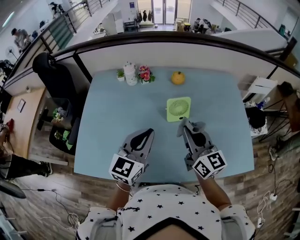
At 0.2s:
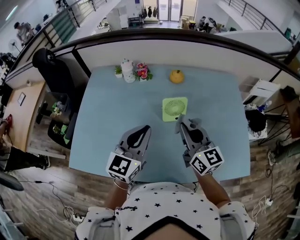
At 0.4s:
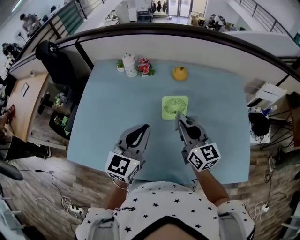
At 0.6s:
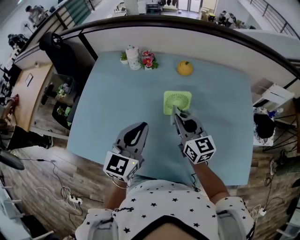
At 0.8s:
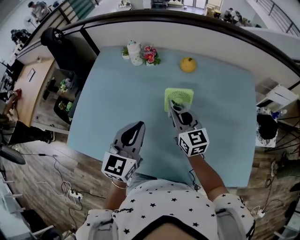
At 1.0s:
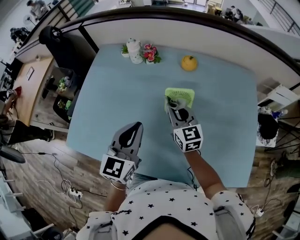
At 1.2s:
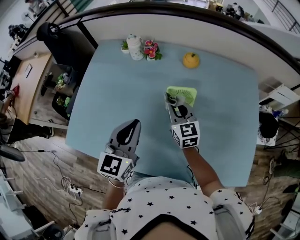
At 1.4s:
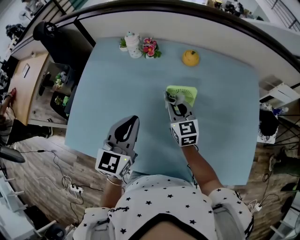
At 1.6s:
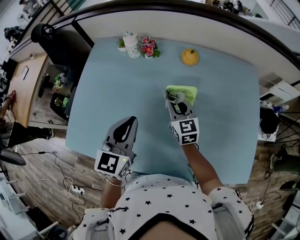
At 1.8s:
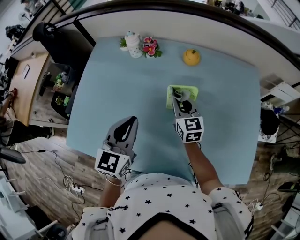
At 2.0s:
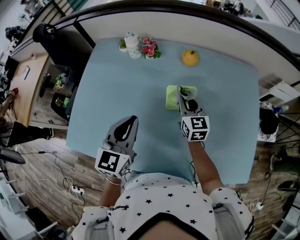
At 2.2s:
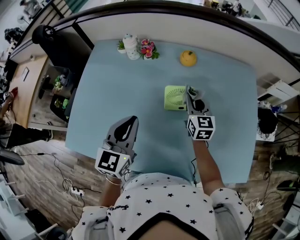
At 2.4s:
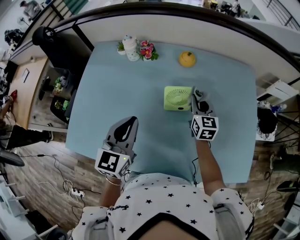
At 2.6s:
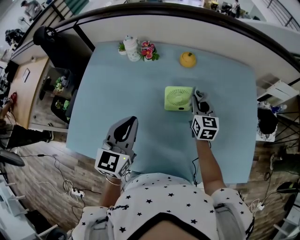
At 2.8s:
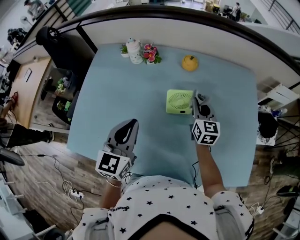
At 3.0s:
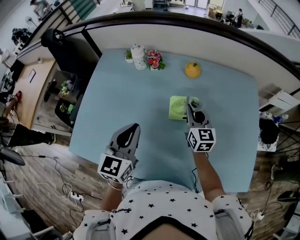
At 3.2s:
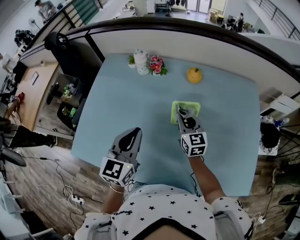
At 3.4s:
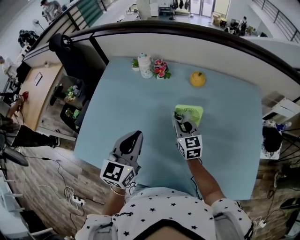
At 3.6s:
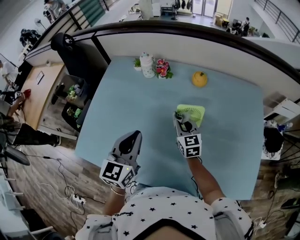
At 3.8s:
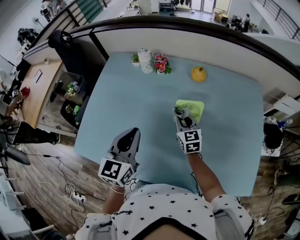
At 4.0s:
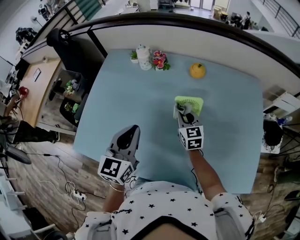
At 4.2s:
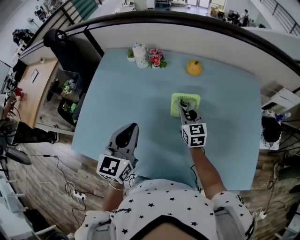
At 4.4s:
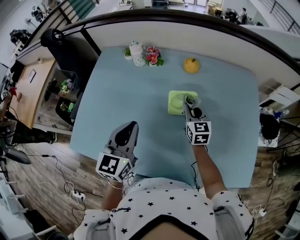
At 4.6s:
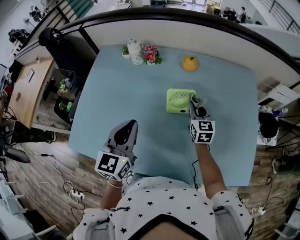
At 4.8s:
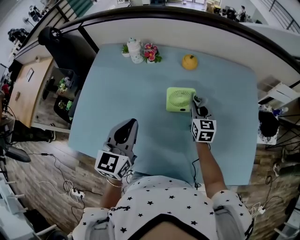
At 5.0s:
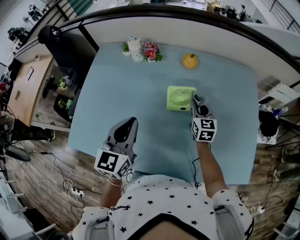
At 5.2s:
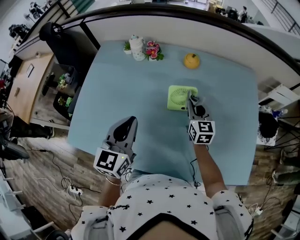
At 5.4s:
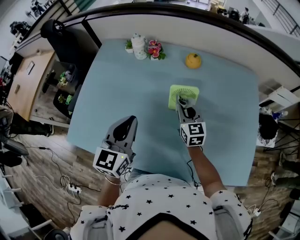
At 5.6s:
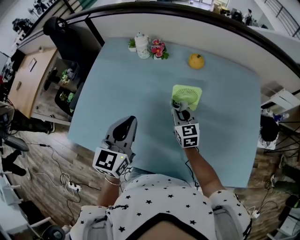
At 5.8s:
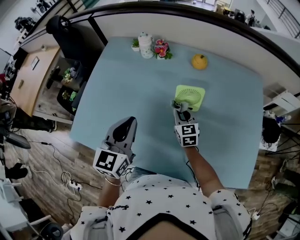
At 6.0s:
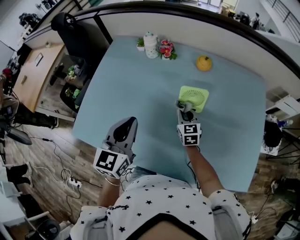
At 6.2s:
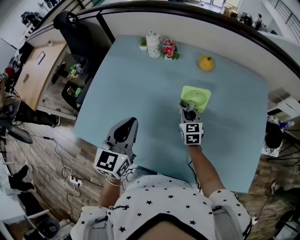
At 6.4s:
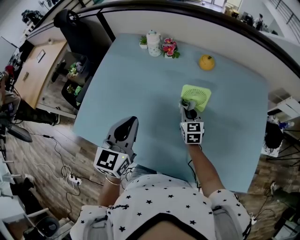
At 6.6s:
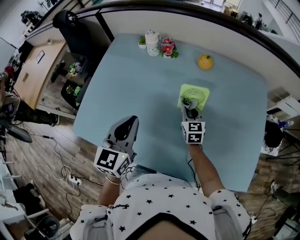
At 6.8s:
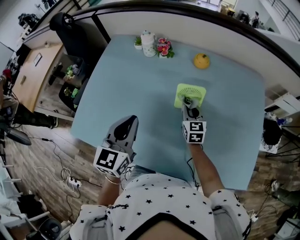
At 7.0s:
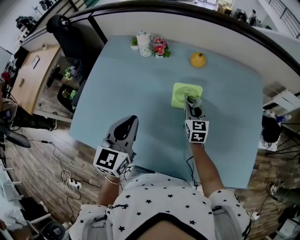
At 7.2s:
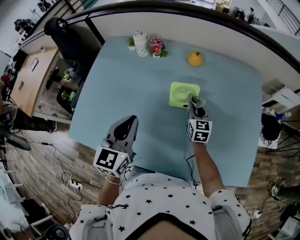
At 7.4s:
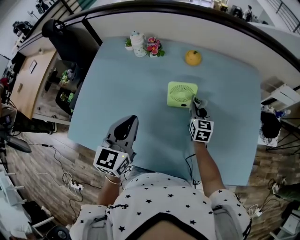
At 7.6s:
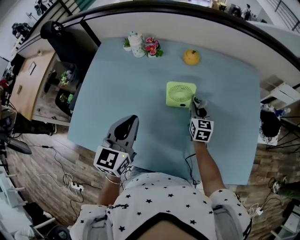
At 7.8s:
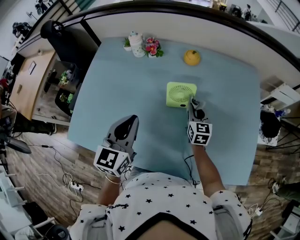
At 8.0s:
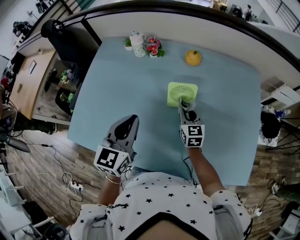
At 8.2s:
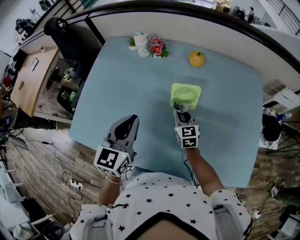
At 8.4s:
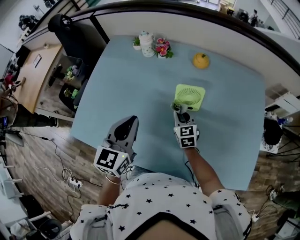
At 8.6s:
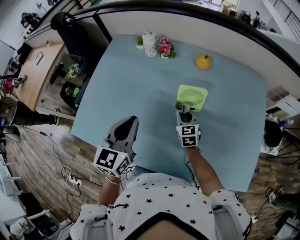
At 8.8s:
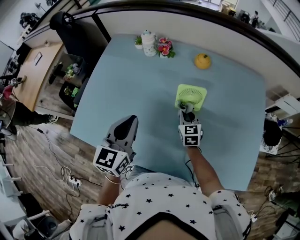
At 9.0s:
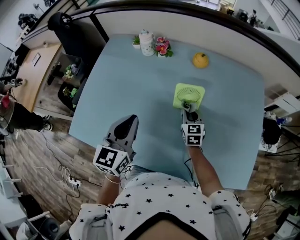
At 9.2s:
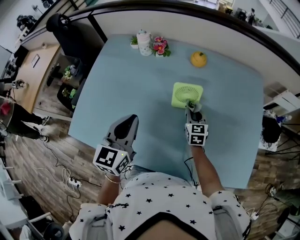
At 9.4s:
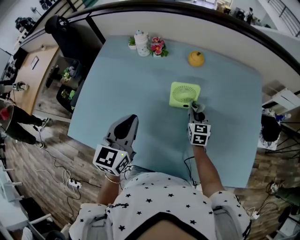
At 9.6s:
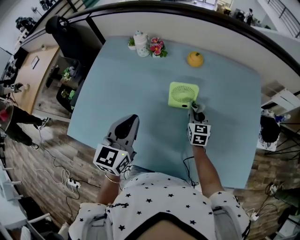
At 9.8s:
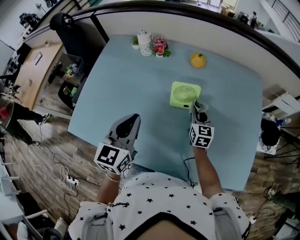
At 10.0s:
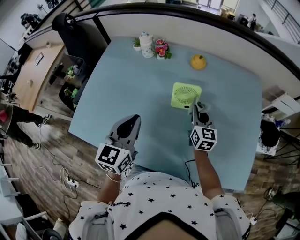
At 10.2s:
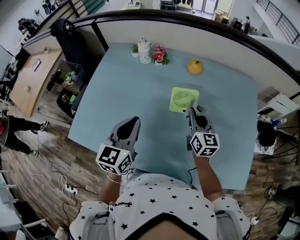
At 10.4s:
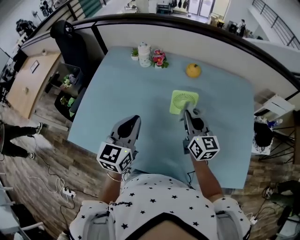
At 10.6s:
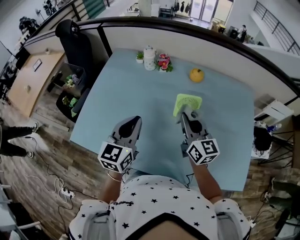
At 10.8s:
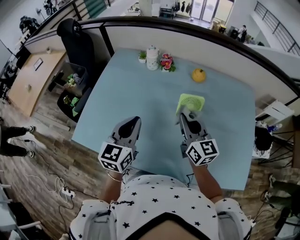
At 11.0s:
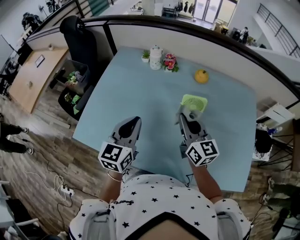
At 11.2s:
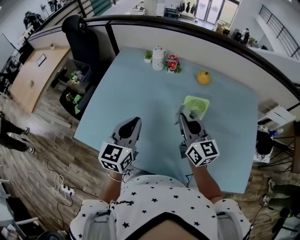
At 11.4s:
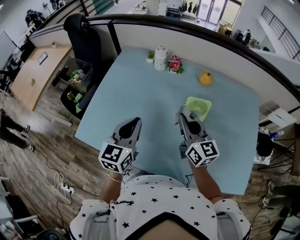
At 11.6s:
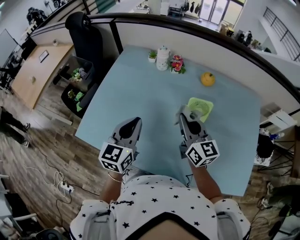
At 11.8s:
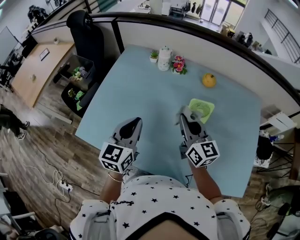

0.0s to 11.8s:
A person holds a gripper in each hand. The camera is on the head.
0.0s to 1.4s: The left gripper changes place by roughly 5 cm. Meanwhile the right gripper shifts approximately 20 cm downward and forward, and turns by some 20 degrees.
1.4s to 3.0s: The right gripper shifts about 5 cm to the right.
3.0s to 4.4s: The right gripper goes to the left and returns, roughly 10 cm each way.
4.4s to 6.0s: The right gripper shifts some 10 cm to the left and downward.
6.0s to 7.4s: The right gripper shifts some 10 cm to the right.
7.4s to 8.8s: The right gripper goes approximately 10 cm to the left.
8.8s to 10.4s: The right gripper is displaced upward by about 15 cm, and swivels about 30 degrees.
10.4s to 11.8s: Both grippers move to the left, some 10 cm.

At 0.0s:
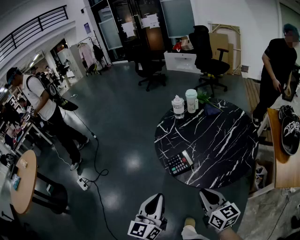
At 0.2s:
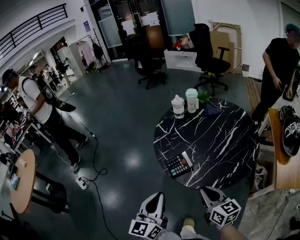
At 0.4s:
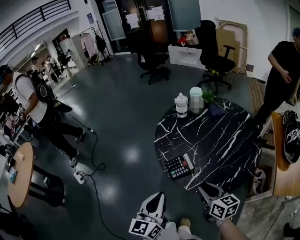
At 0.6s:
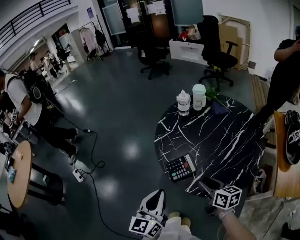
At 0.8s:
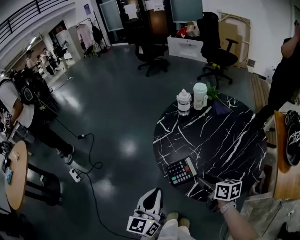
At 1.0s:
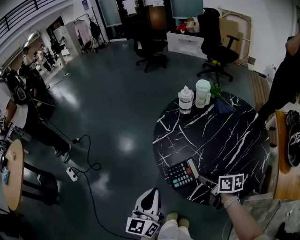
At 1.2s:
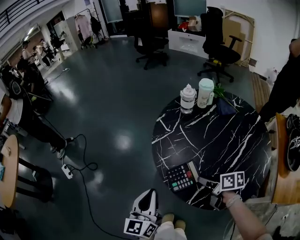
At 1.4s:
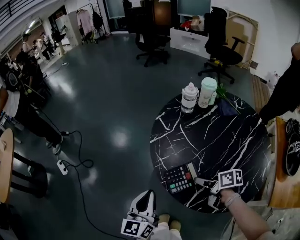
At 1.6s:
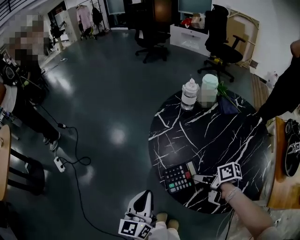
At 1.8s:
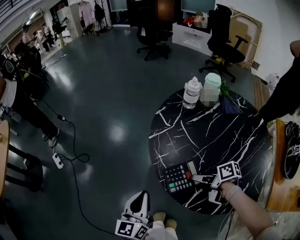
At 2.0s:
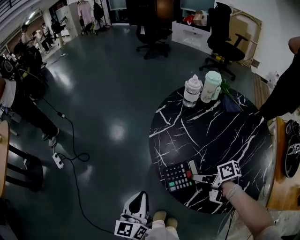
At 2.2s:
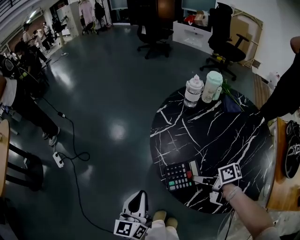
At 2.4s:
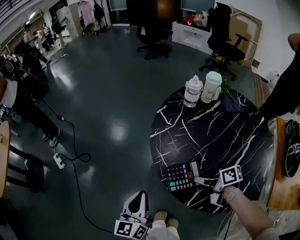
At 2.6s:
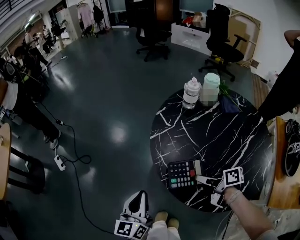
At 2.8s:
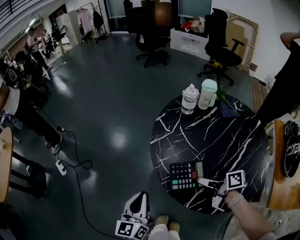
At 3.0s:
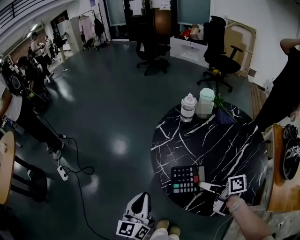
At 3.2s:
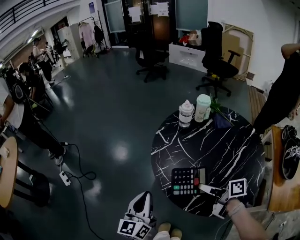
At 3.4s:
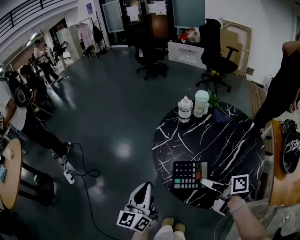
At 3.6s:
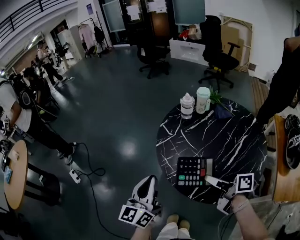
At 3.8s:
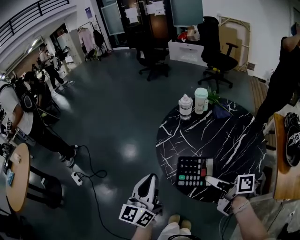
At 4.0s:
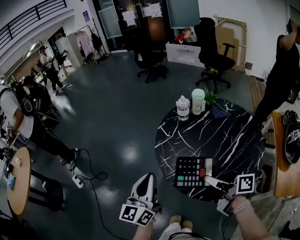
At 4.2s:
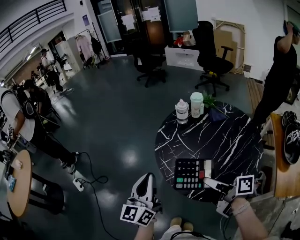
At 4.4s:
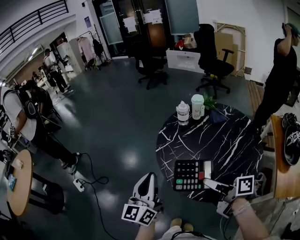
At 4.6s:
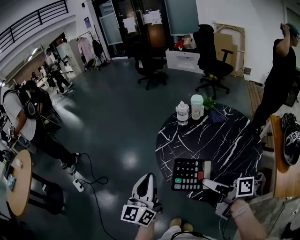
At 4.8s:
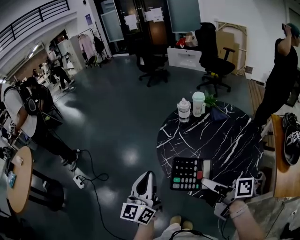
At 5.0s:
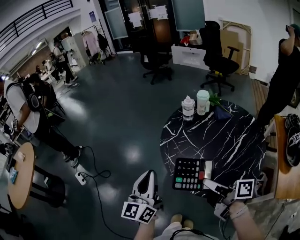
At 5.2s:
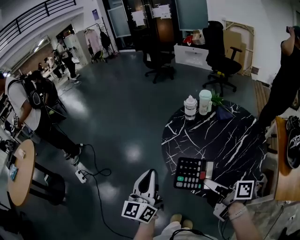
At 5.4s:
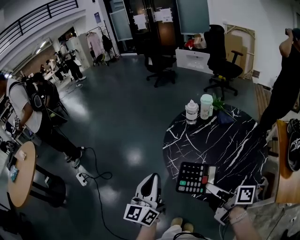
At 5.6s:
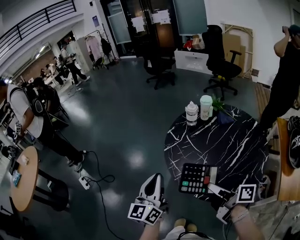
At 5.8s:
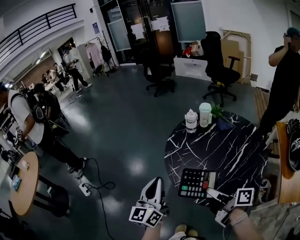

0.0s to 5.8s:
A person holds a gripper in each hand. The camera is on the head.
0.0s to 1.4s: Both grippers move forward and downward, roughly 25 cm. The right gripper turns by roughly 50 degrees, and opens its fingers.
1.4s to 2.8s: The right gripper is displaced upward by roughly 5 cm, and closes.
2.8s to 4.4s: The left gripper is displaced upward by approximately 20 cm; the right gripper is displaced upward and backward by some 20 cm.
4.4s to 5.8s: The grippers make only small movements.

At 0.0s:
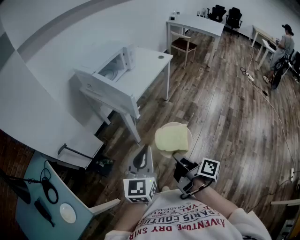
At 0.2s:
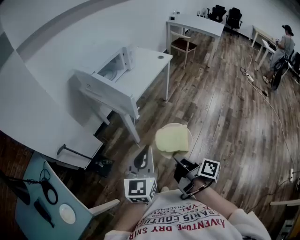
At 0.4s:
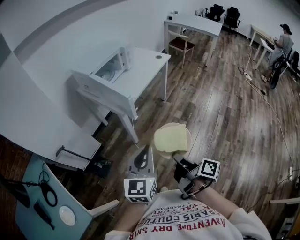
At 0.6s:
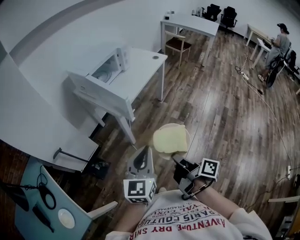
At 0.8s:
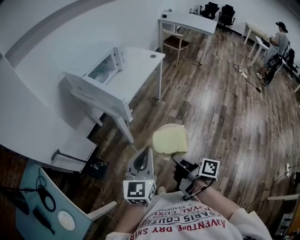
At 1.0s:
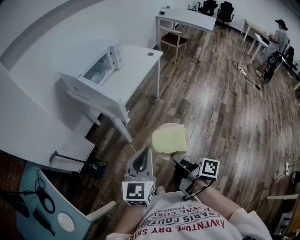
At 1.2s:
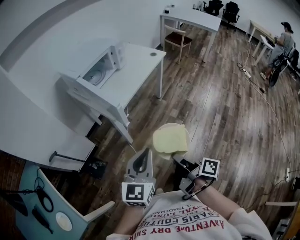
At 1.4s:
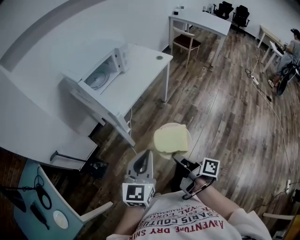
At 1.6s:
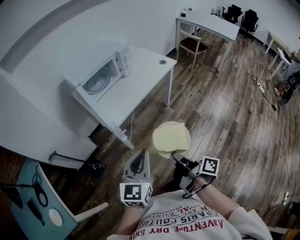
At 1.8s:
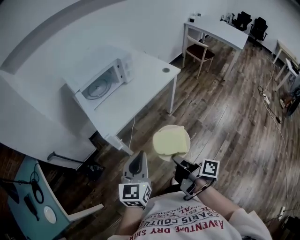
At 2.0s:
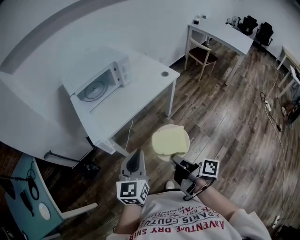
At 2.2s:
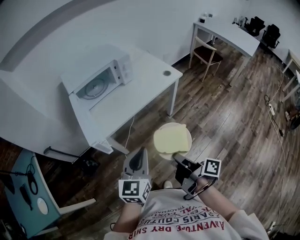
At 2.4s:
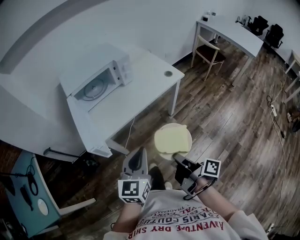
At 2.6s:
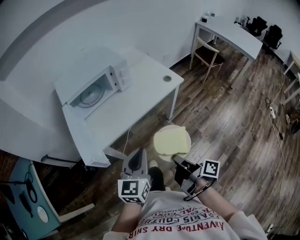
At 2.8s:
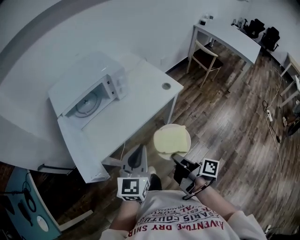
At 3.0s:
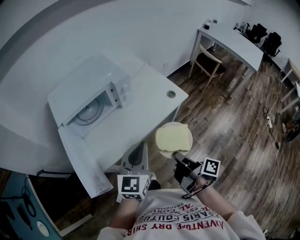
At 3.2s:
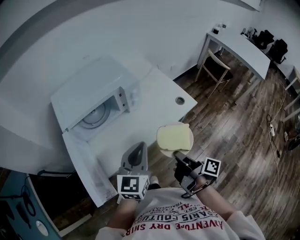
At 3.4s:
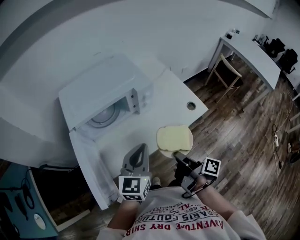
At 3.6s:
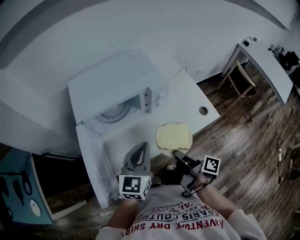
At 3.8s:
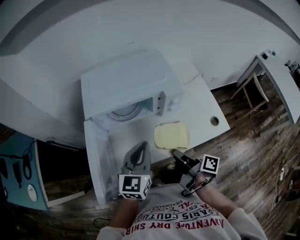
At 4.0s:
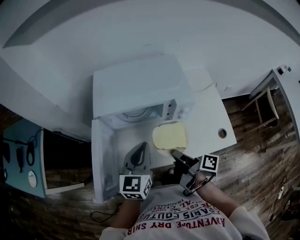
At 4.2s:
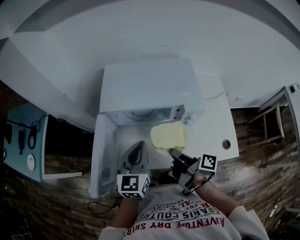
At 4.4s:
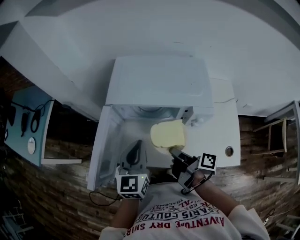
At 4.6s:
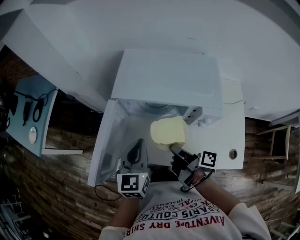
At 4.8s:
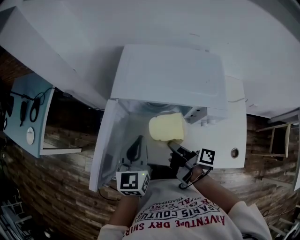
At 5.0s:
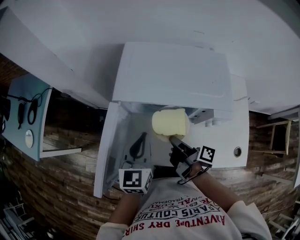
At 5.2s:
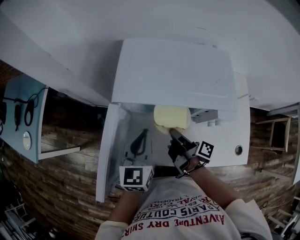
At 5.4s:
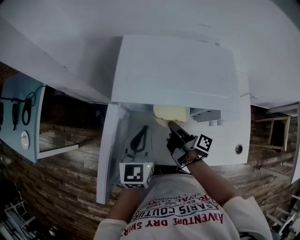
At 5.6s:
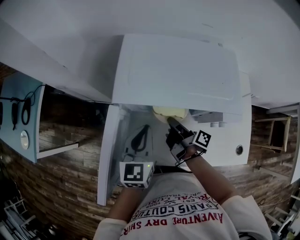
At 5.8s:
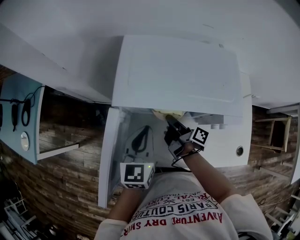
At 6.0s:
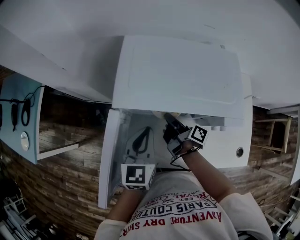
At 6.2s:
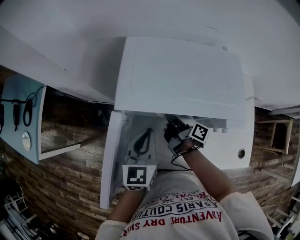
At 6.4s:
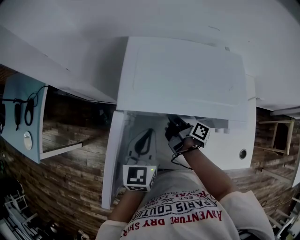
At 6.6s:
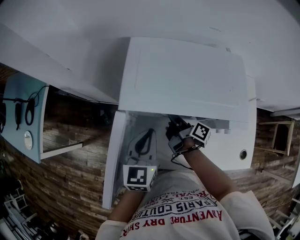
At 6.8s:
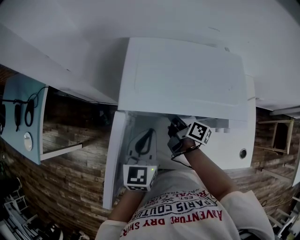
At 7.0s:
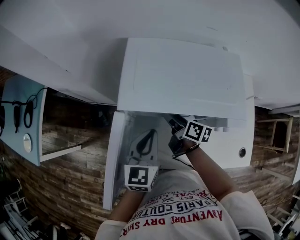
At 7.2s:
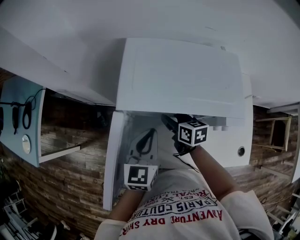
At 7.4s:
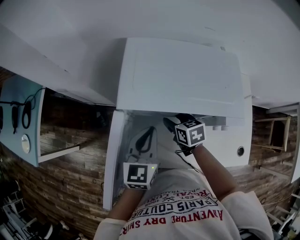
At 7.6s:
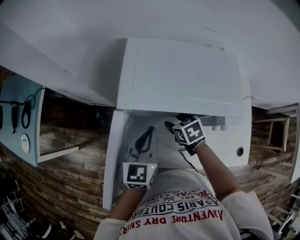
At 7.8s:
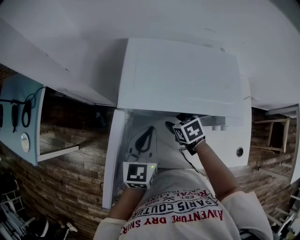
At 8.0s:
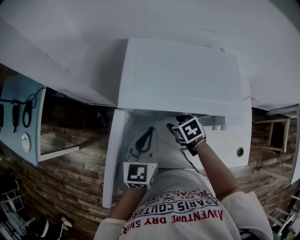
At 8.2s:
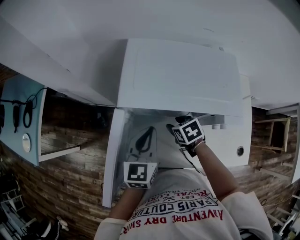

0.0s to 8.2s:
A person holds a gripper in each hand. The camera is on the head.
0.0s to 1.6s: The left gripper moves approximately 20 cm.
1.6s to 3.2s: The left gripper shifts by some 40 cm.
3.2s to 5.0s: The left gripper changes place by some 25 cm, and rotates approximately 50 degrees.
5.0s to 6.6s: The left gripper ends up roughly 5 cm from where it was.
